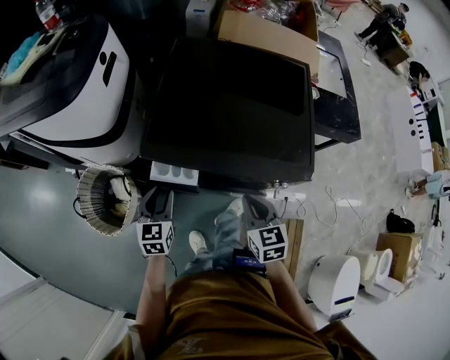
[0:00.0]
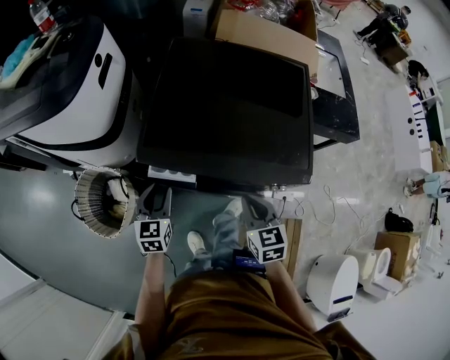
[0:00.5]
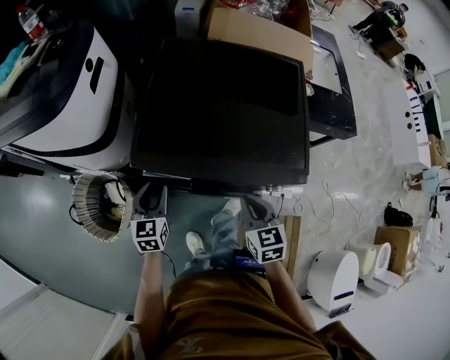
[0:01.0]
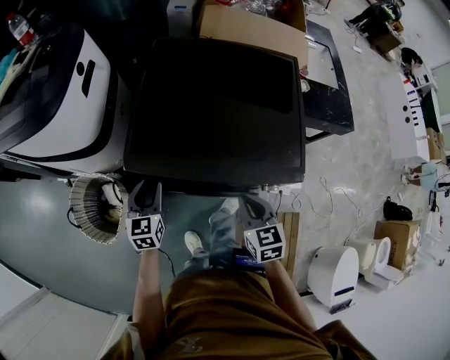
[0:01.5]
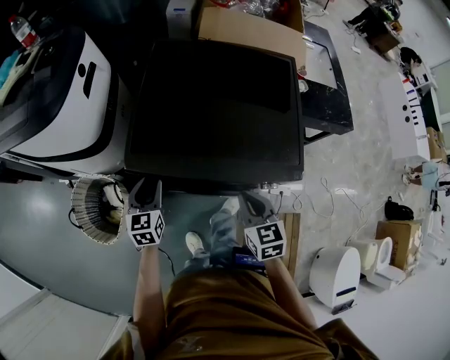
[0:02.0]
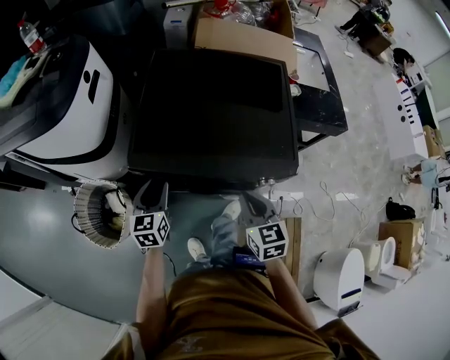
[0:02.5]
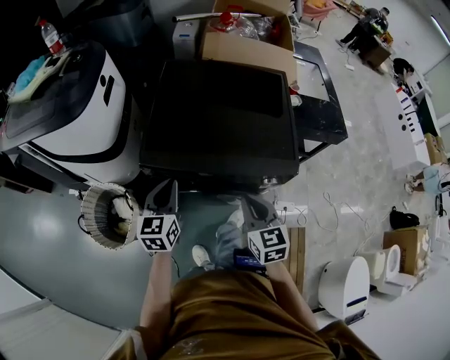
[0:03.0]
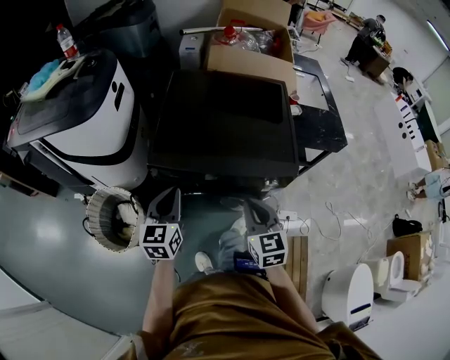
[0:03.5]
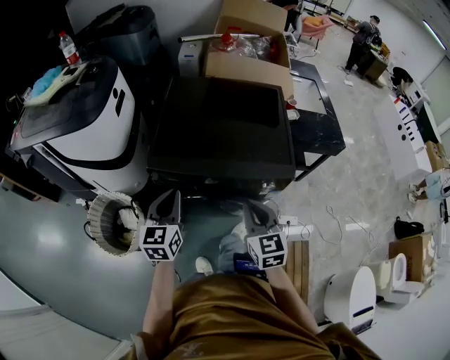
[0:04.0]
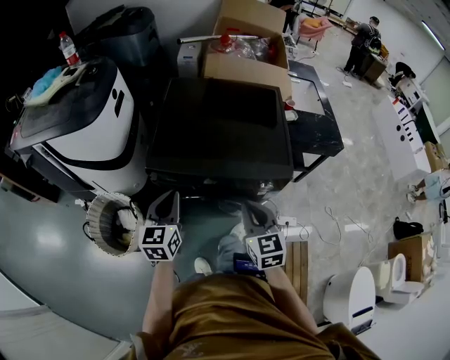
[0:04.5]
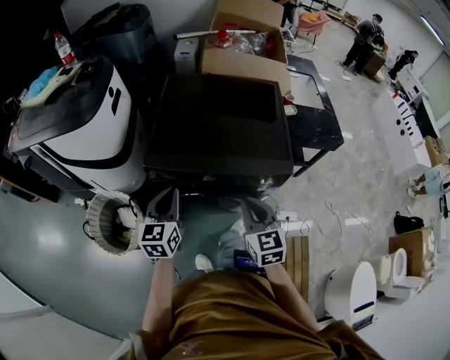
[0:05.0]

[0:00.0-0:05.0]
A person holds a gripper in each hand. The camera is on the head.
0:00.0 to 0:02.5: The left gripper moves approximately 5 cm.
0:02.5 to 0:05.0: The right gripper shifts approximately 10 cm backward and upward; the left gripper moves upward and backward, roughly 15 cm, and closes its fingers.

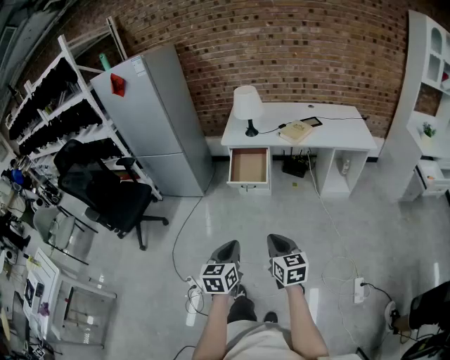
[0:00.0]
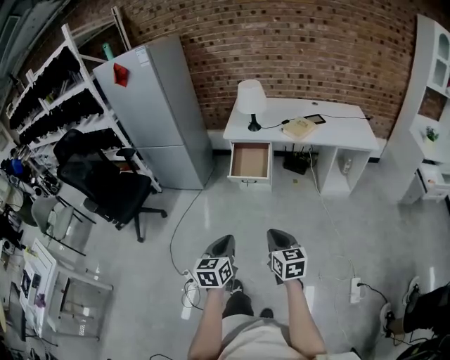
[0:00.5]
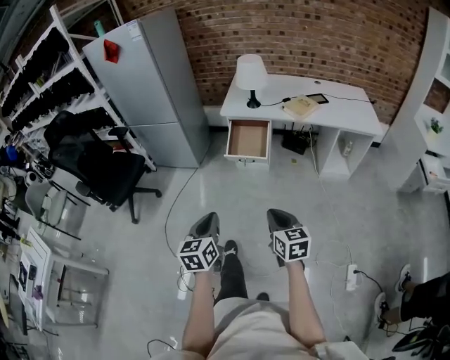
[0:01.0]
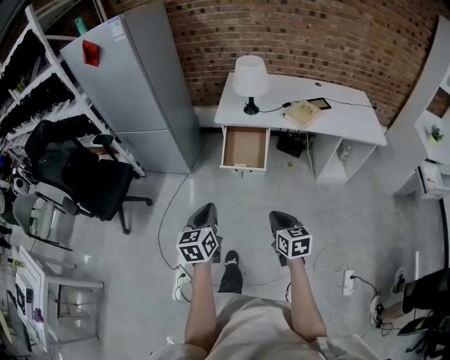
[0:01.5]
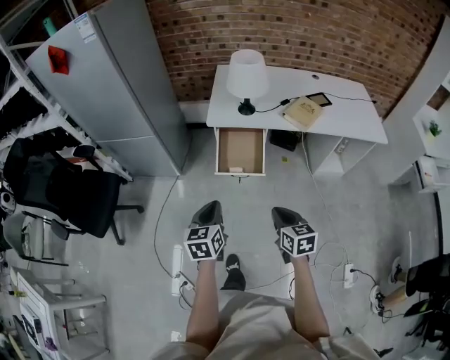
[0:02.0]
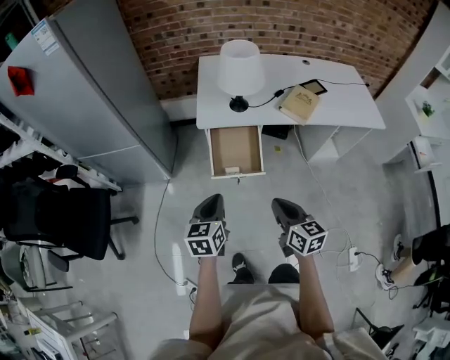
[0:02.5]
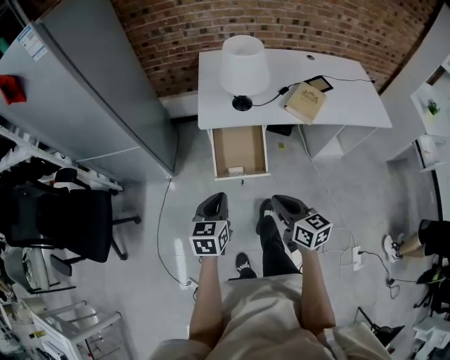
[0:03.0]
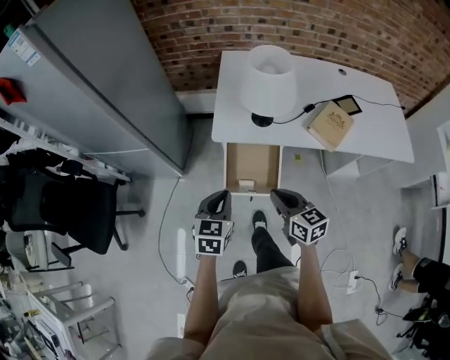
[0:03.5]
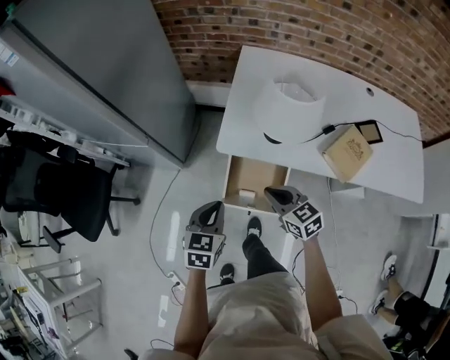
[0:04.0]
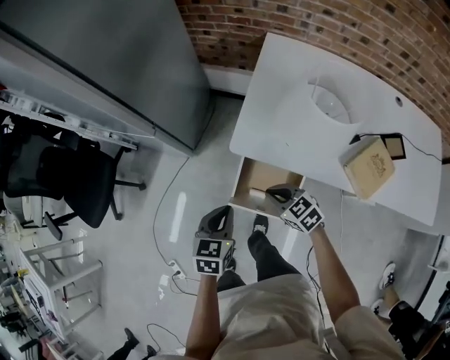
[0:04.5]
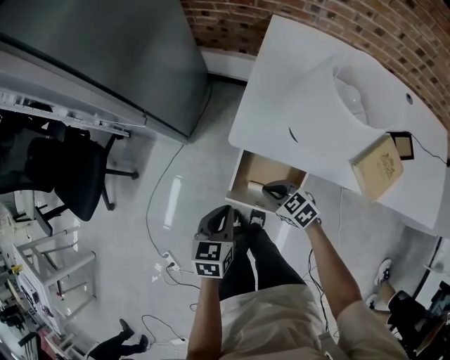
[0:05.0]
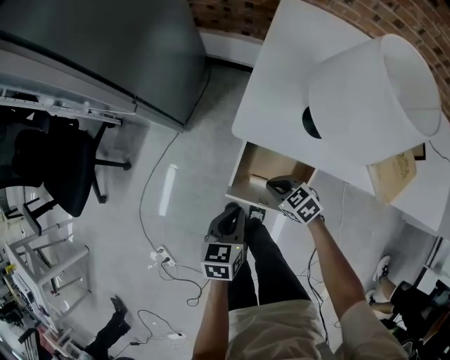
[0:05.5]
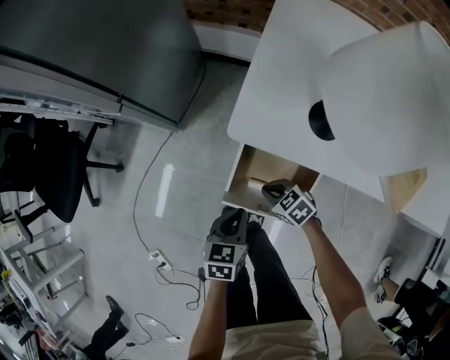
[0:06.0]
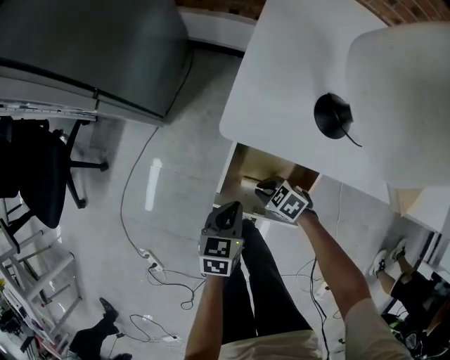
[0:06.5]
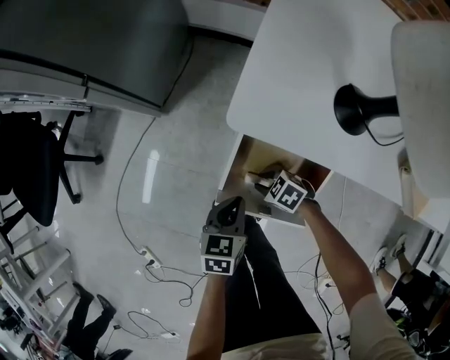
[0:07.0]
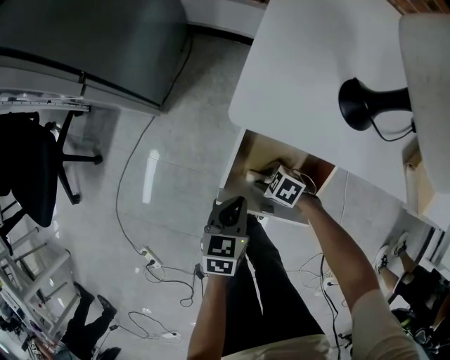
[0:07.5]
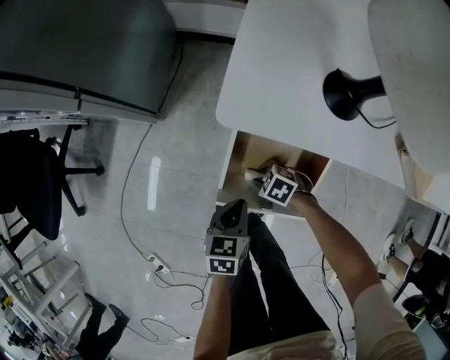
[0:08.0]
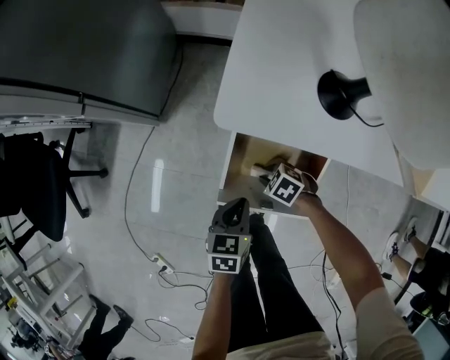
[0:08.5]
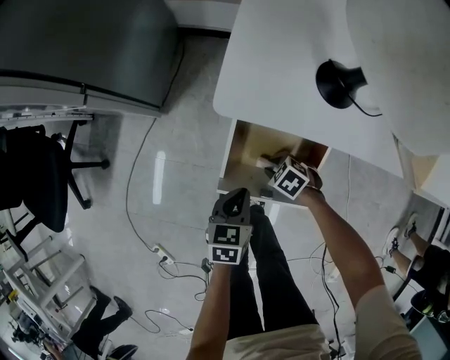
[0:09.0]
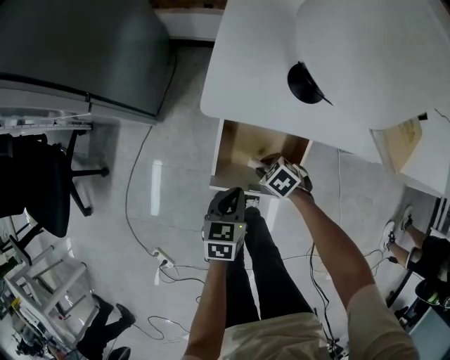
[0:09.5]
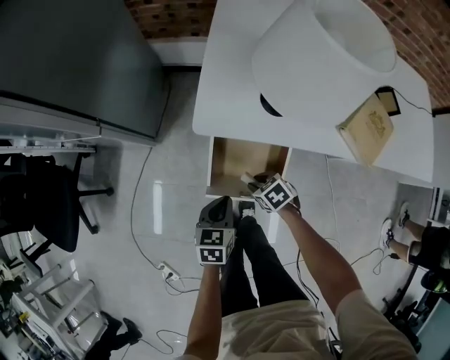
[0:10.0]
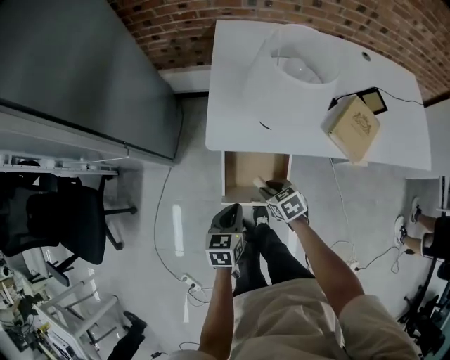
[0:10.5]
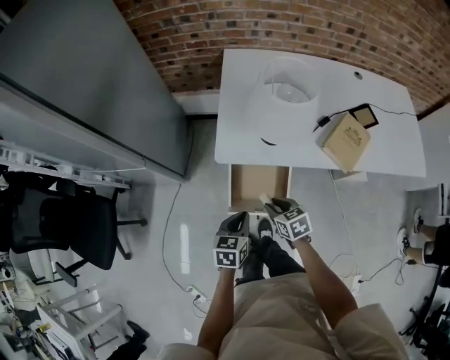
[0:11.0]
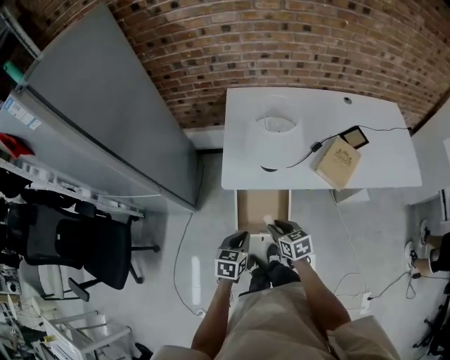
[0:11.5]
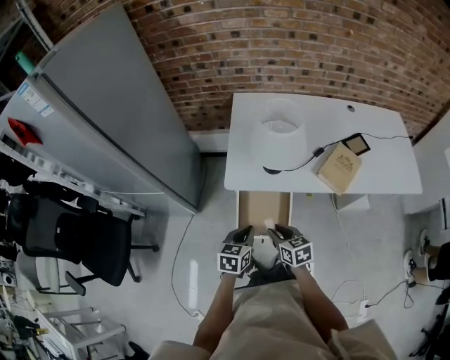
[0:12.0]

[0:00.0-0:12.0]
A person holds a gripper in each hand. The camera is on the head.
0:00.0 to 0:02.0: The grippers both shift forward by roughly 35 cm.
0:02.0 to 0:04.0: Both grippers travel together forward, approximately 35 cm. The right gripper rotates roughly 30 degrees.
0:04.0 to 0:06.0: The grippers both shift downward by roughly 30 cm. The right gripper changes its angle by about 40 degrees.
0:06.0 to 0:08.0: Both grippers travel together downward, some 10 cm. The right gripper opens up.
0:08.0 to 0:10.0: Both grippers move upward, roughly 15 cm. The right gripper changes its angle by some 30 degrees.
0:10.0 to 0:12.0: The two grippers go some 25 cm upward. The right gripper turns by some 40 degrees.

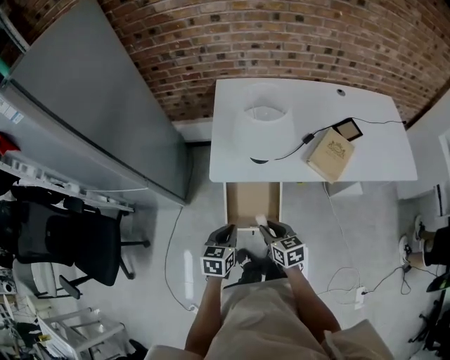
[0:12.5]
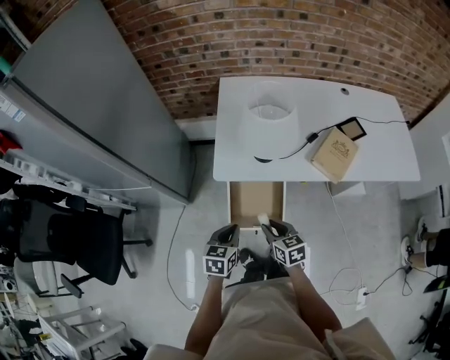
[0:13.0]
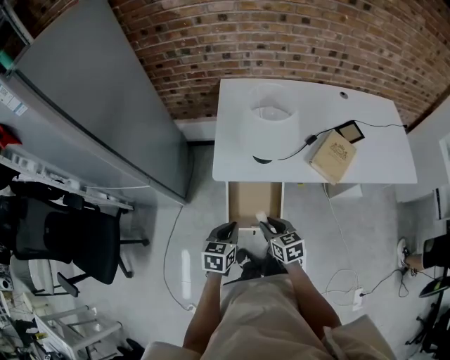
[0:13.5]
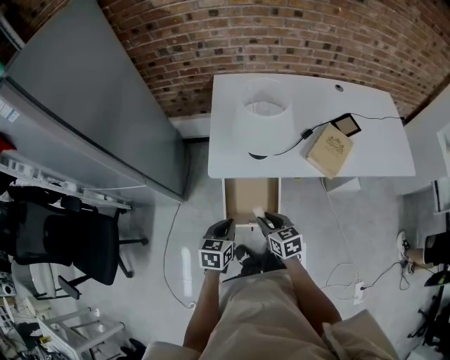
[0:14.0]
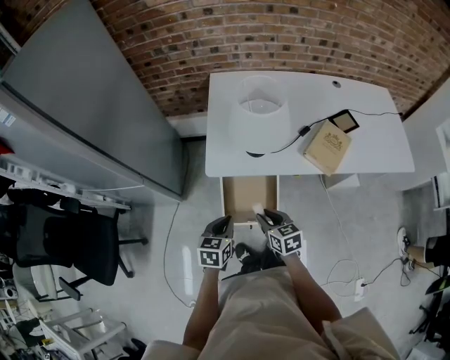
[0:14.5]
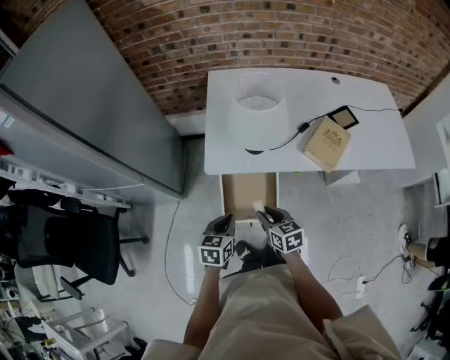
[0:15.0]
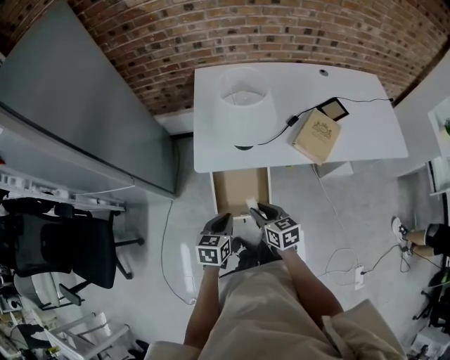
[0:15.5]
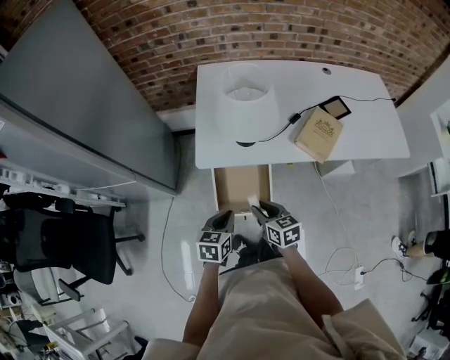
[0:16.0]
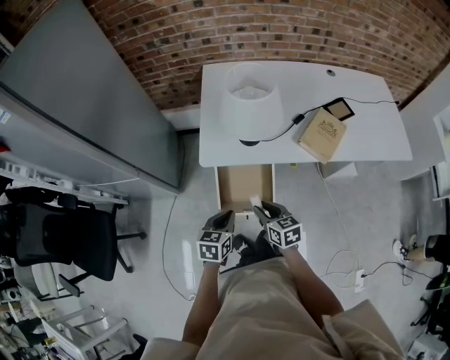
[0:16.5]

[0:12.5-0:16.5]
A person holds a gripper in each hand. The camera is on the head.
0:12.5 to 0:16.5: The grippers move only a little.

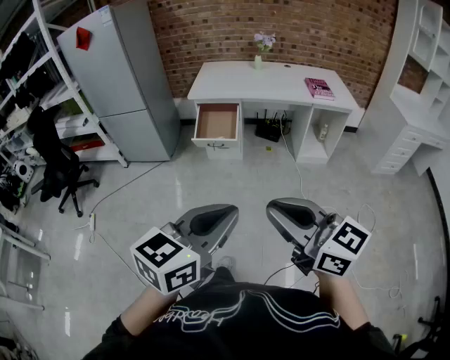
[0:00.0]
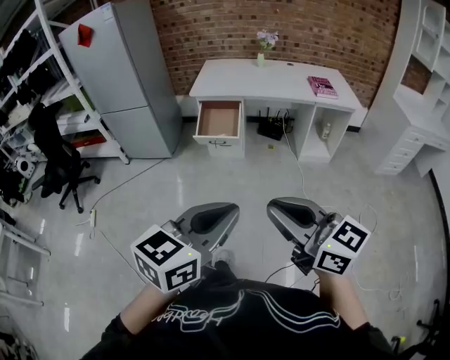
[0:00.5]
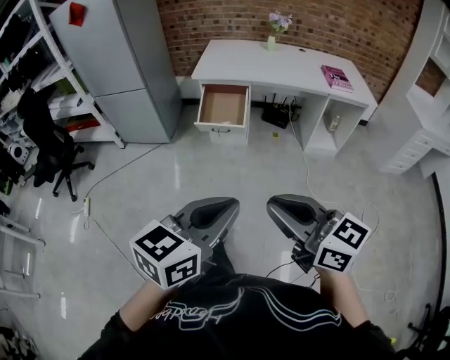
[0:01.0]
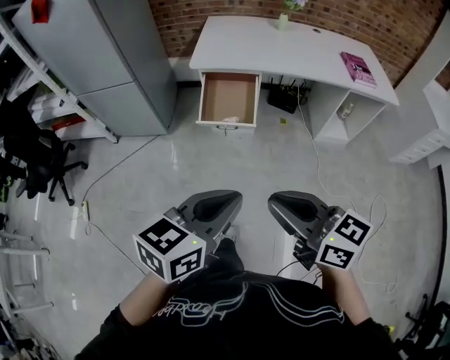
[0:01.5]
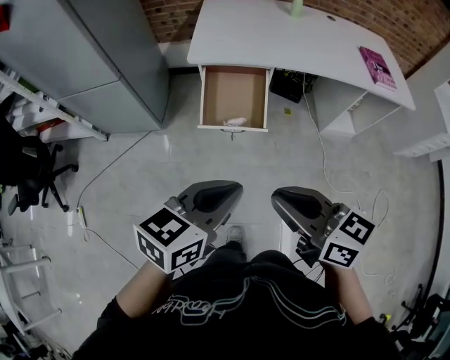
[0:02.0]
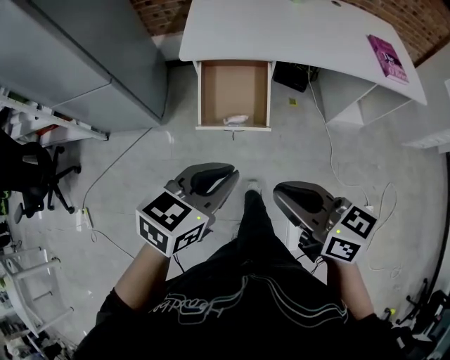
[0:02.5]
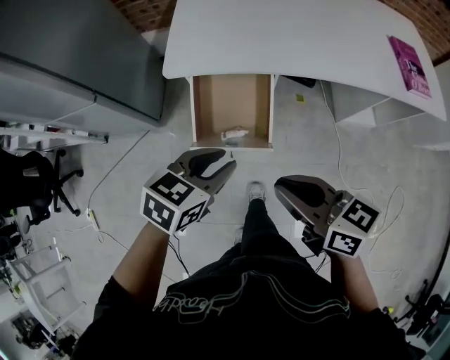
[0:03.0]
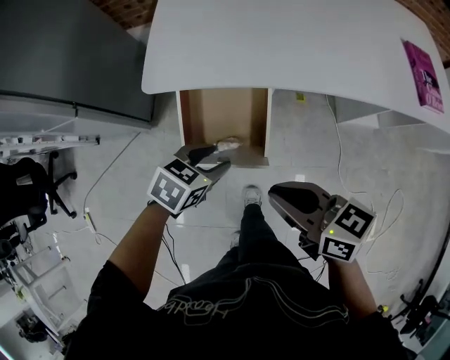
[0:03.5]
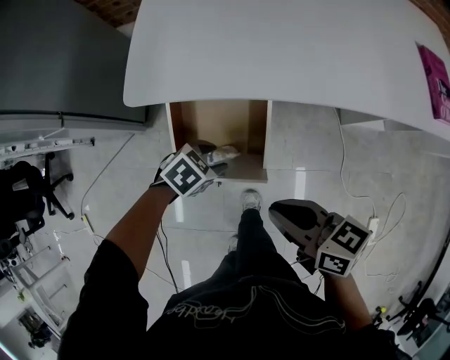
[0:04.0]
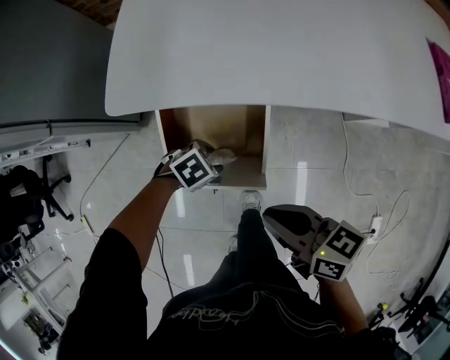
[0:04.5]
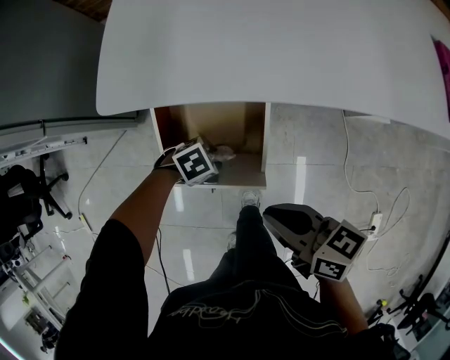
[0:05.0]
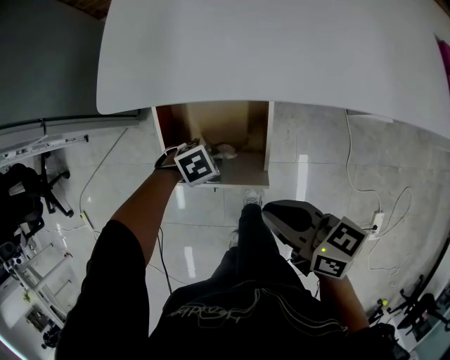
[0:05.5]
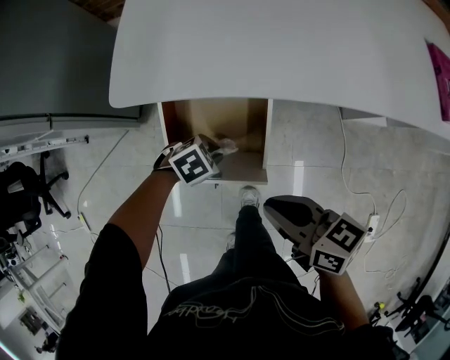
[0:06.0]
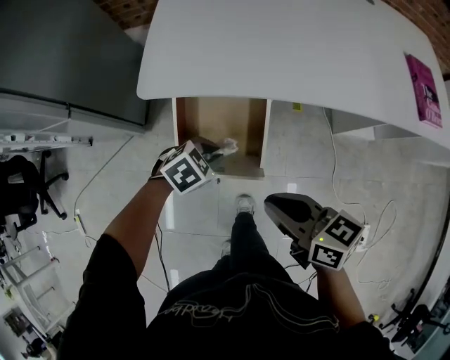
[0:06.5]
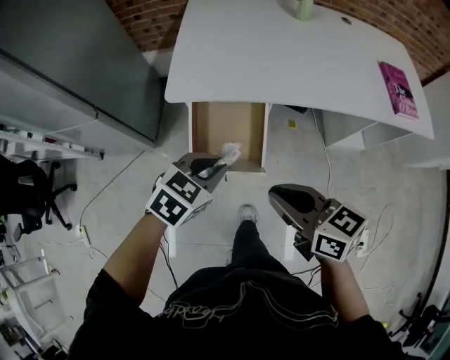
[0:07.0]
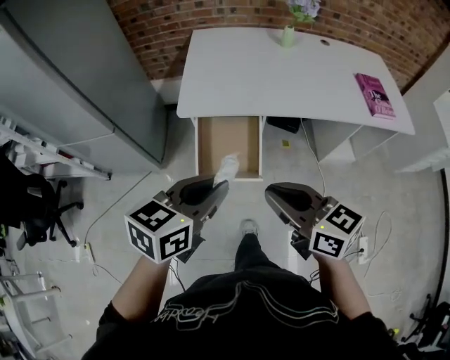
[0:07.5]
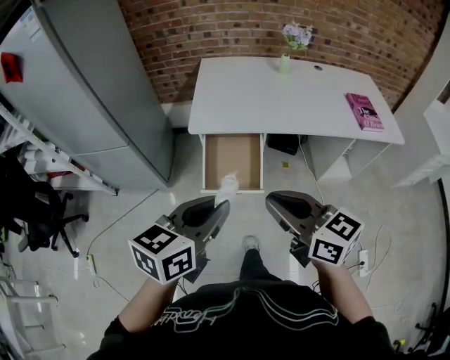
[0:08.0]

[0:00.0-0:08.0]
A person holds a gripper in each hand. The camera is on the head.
0:00.0 to 0:02.0: The pair of grippers is taken forward, some 50 cm. The right gripper turns by some 20 degrees.
0:02.0 to 0:04.0: The right gripper changes place by some 40 cm, and rotates about 20 degrees, while the left gripper changes place by approximately 60 cm, tips its fingers downward by some 40 degrees, and opens up.
0:04.0 to 0:06.0: The left gripper goes roughly 5 cm downward, and closes its fingers.
0:06.0 to 0:08.0: The left gripper moves upward, roughly 50 cm, and points its fingers roughly 50 degrees further upward. Meanwhile the right gripper shifts approximately 35 cm upward, and rotates roughly 30 degrees.
